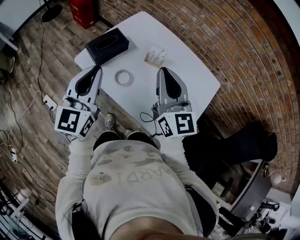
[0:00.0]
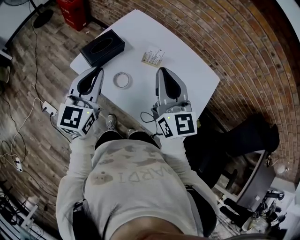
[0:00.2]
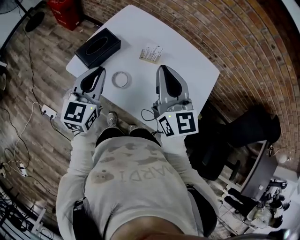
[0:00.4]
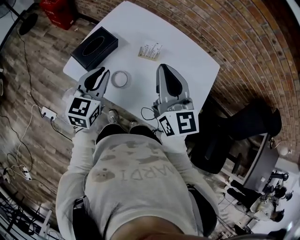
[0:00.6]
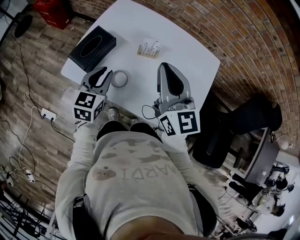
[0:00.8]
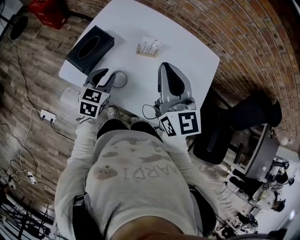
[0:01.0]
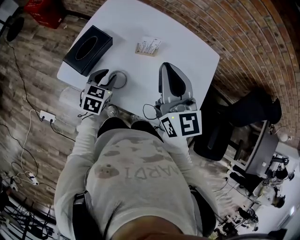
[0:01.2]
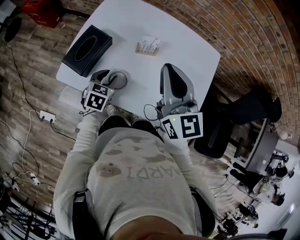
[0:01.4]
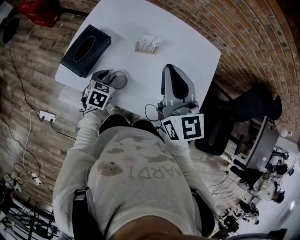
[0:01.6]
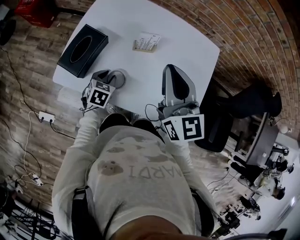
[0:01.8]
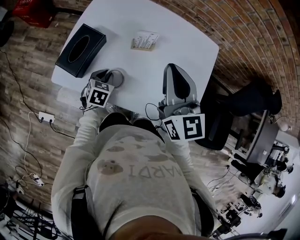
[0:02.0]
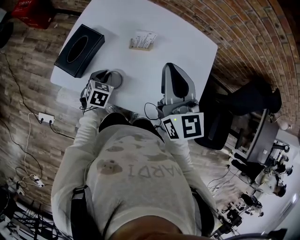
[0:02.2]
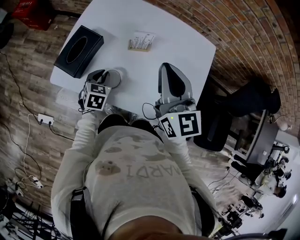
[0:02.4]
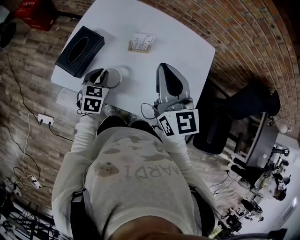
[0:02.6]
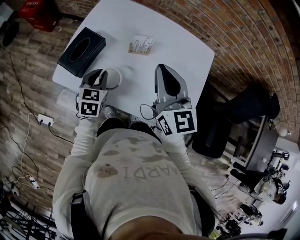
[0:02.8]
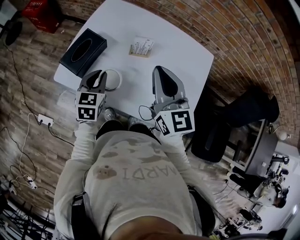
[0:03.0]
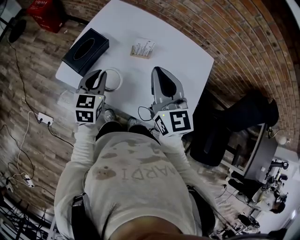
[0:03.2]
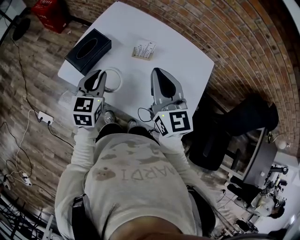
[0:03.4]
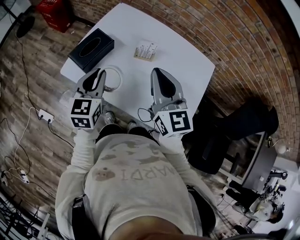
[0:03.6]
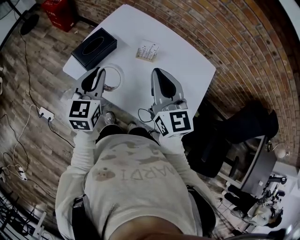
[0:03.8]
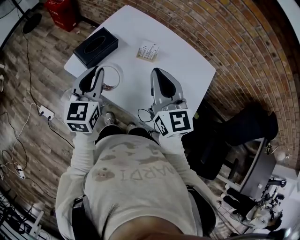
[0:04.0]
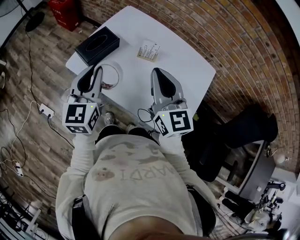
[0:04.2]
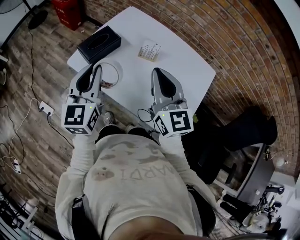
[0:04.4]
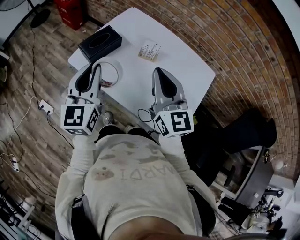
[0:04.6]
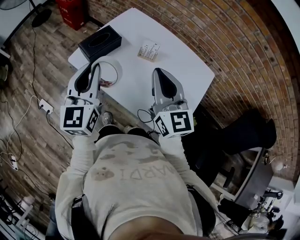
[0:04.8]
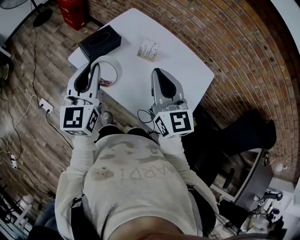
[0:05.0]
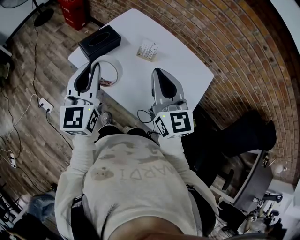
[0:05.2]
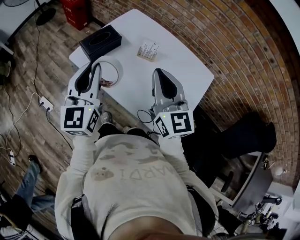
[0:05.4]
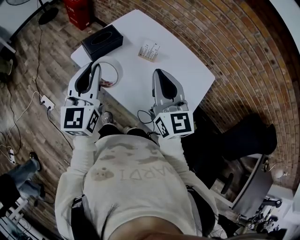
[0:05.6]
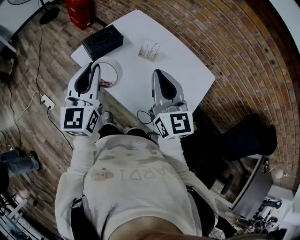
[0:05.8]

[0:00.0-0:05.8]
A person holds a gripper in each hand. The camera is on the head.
0:00.0 to 0:01.4: The left gripper heads downward and forward, covering roughly 35 cm, angles its fingers downward, by some 50 degrees, and opens its fingers, while the right gripper moves forward, some 10 cm.
0:01.4 to 0:02.8: The left gripper travels upward by some 5 cm.
0:02.8 to 0:04.4: The right gripper travels backward by about 10 cm; the left gripper goes about 25 cm upward and backward, and angles its fingers upward, by some 30 degrees.
0:04.4 to 0:05.8: Both grippers travel together backward, approximately 5 cm.

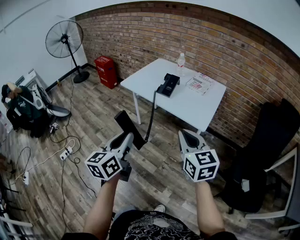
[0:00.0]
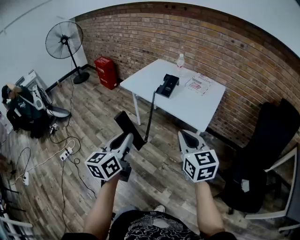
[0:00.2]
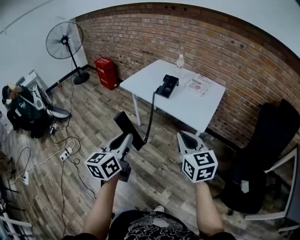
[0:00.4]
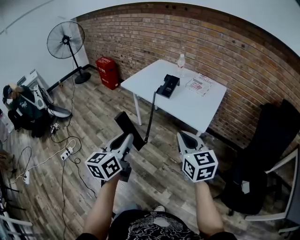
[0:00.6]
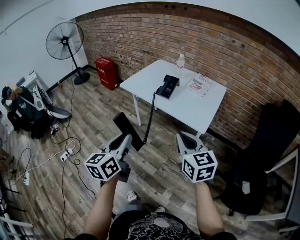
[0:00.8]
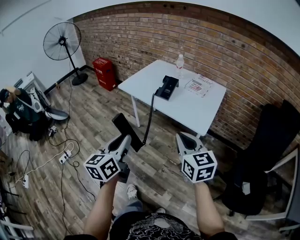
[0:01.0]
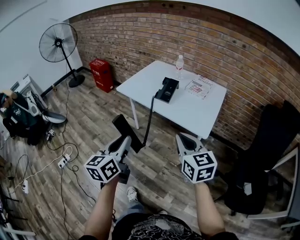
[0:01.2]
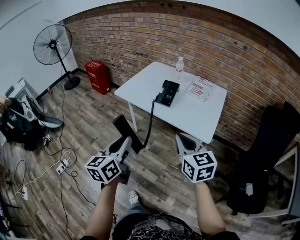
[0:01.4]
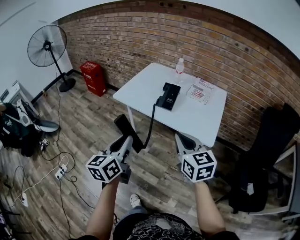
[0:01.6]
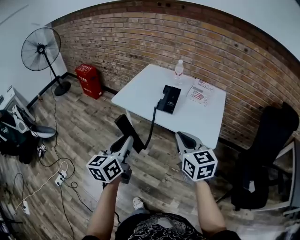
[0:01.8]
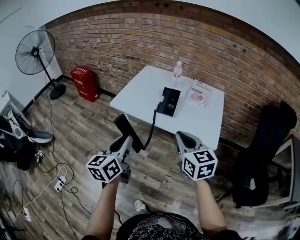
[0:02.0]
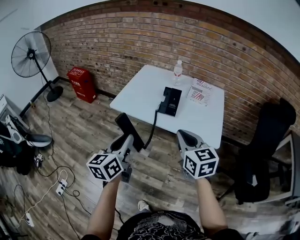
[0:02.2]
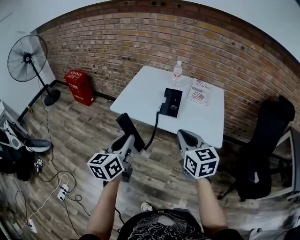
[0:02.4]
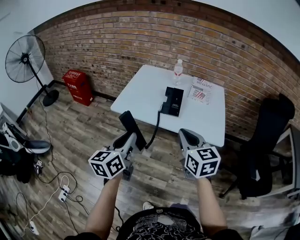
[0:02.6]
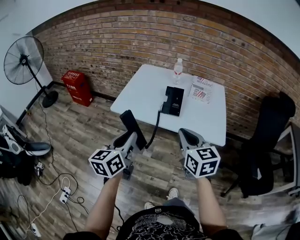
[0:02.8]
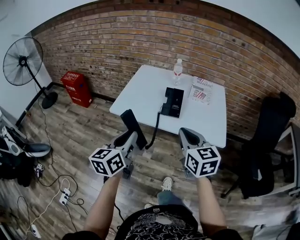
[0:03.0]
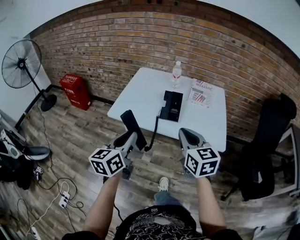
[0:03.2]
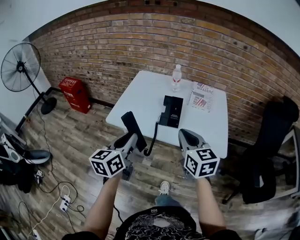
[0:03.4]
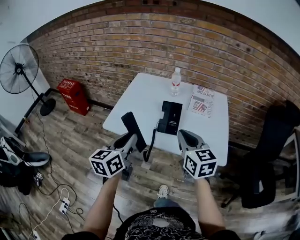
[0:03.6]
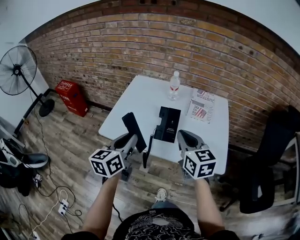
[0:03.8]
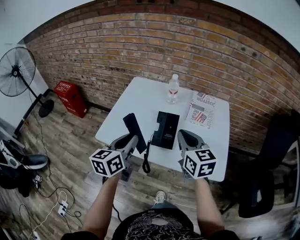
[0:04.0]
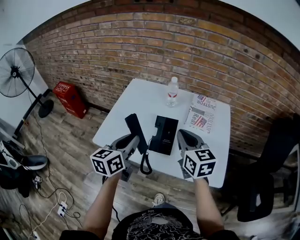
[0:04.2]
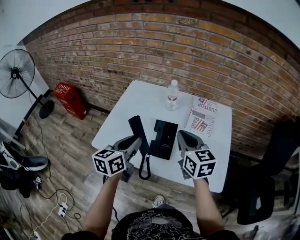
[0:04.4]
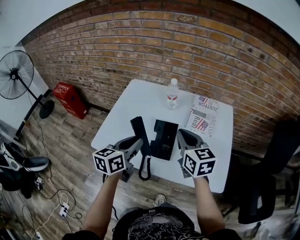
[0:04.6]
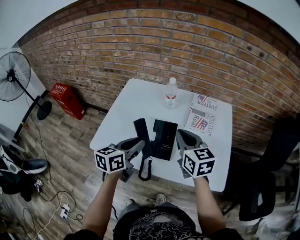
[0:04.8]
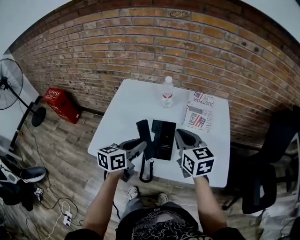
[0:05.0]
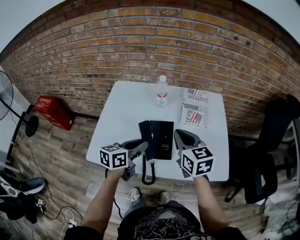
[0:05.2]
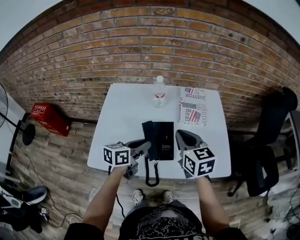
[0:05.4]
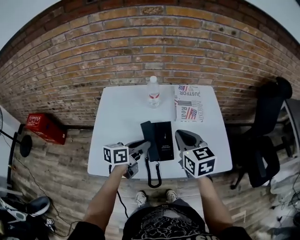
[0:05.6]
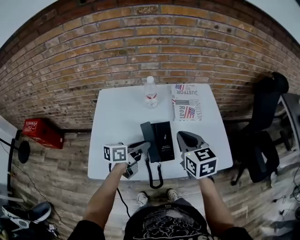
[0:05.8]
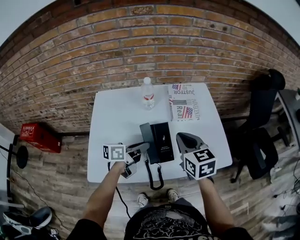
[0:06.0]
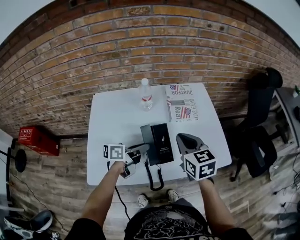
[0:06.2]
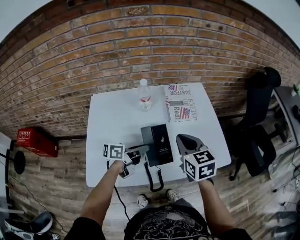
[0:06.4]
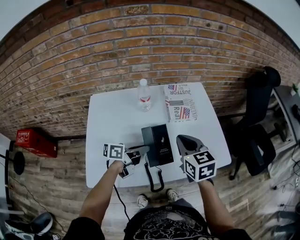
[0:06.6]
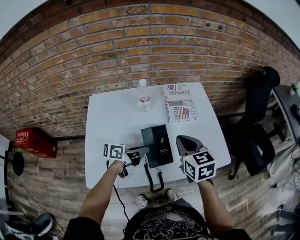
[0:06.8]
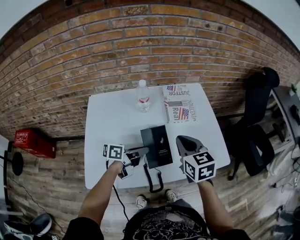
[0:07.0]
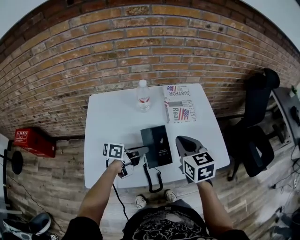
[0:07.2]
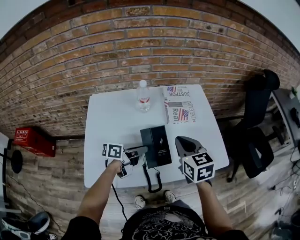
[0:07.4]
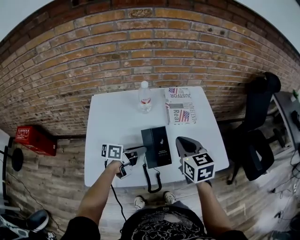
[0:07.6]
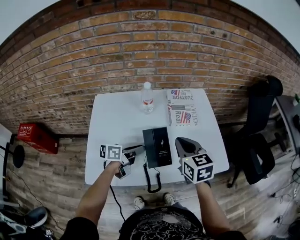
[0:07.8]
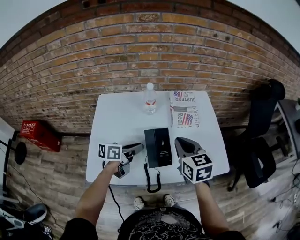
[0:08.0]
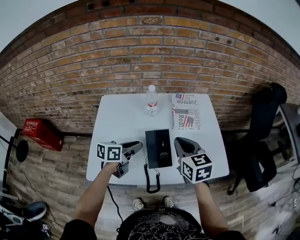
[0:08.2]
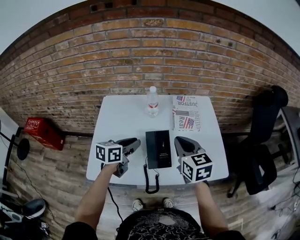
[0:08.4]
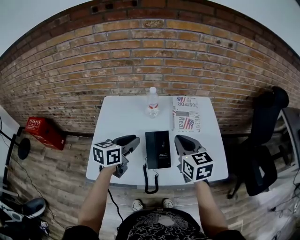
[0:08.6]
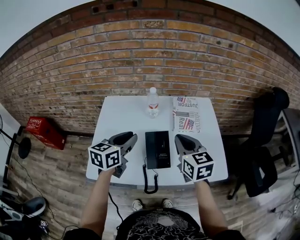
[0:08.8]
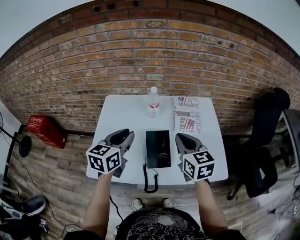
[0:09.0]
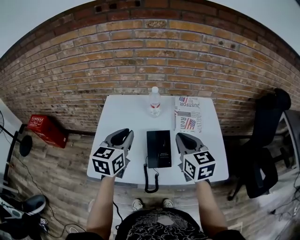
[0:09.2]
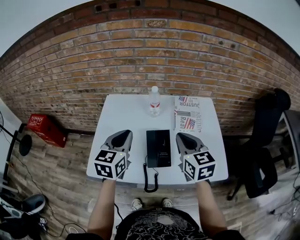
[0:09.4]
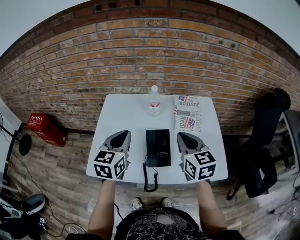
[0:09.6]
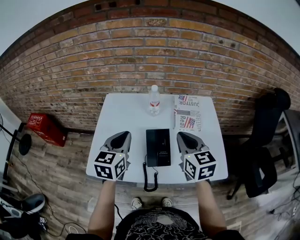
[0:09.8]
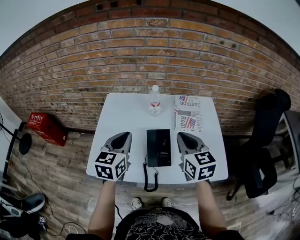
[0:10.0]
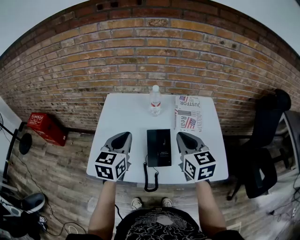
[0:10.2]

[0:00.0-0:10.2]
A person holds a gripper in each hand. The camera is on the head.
0:00.0 to 0:01.4: Both grippers move forward, some 10 cm.
0:01.4 to 0:03.0: The grippers both shift forward and to the left by about 20 cm.
0:03.0 to 0:04.4: Both grippers move forward, approximately 30 cm.
0:04.4 to 0:05.8: The left gripper travels downward by about 10 cm, and rotates some 50 degrees. The right gripper turns by approximately 20 degrees.
0:05.8 to 0:07.2: The grippers make only small movements.
0:07.2 to 0:08.8: The right gripper ends up roughly 5 cm from where it was, while the left gripper shifts about 15 cm upward and to the left, and swivels roughly 50 degrees.
0:08.8 to 0:10.2: The left gripper turns by about 20 degrees.

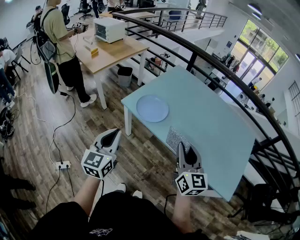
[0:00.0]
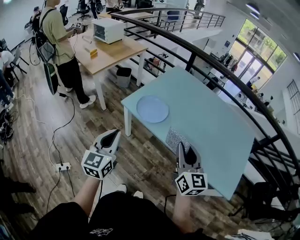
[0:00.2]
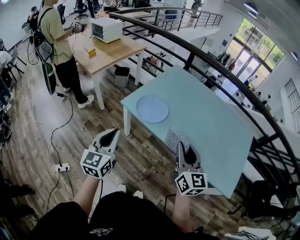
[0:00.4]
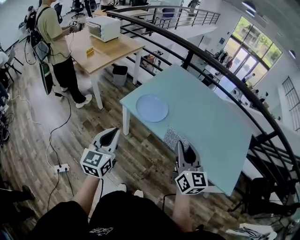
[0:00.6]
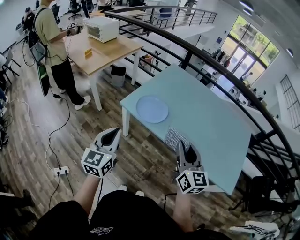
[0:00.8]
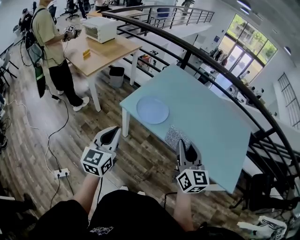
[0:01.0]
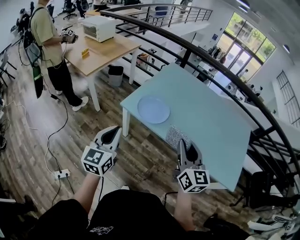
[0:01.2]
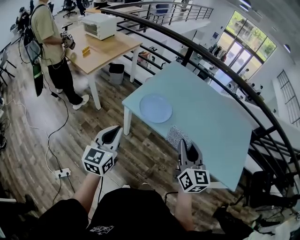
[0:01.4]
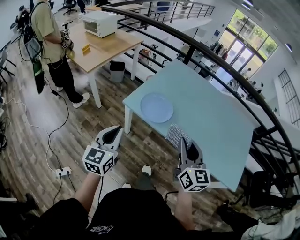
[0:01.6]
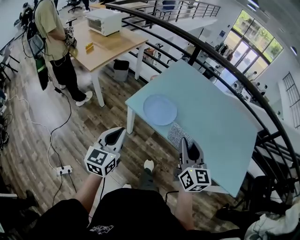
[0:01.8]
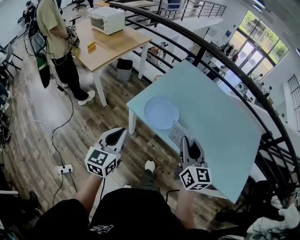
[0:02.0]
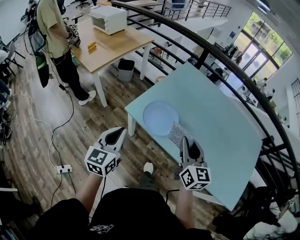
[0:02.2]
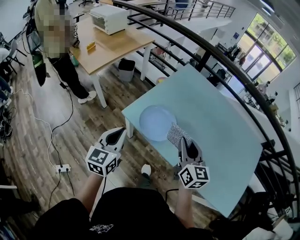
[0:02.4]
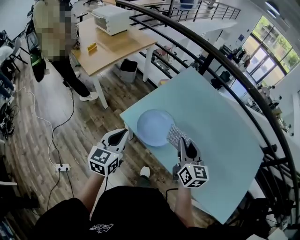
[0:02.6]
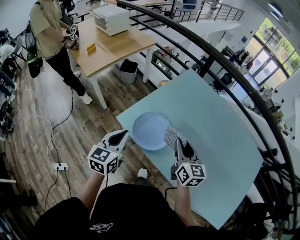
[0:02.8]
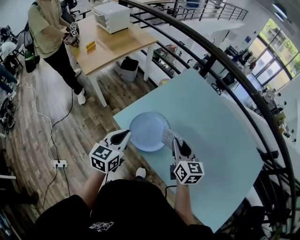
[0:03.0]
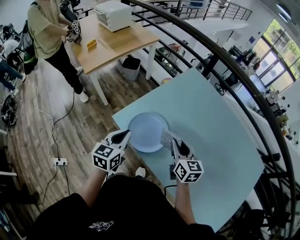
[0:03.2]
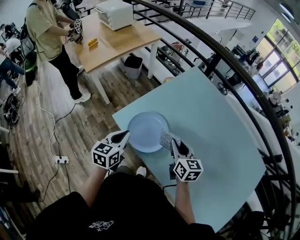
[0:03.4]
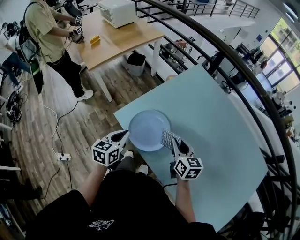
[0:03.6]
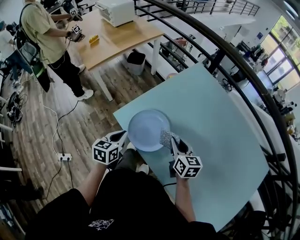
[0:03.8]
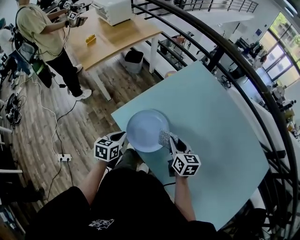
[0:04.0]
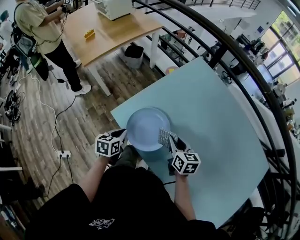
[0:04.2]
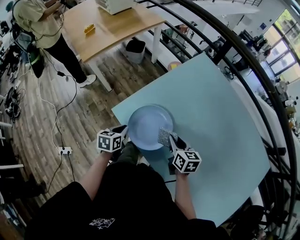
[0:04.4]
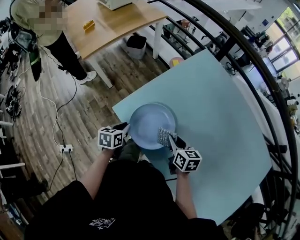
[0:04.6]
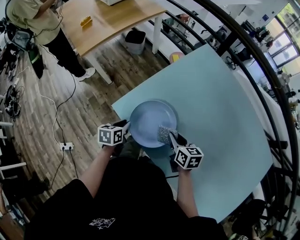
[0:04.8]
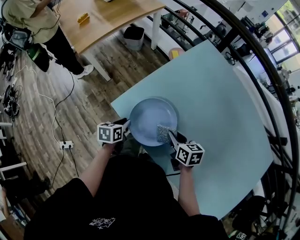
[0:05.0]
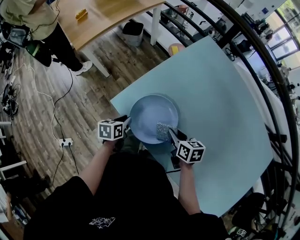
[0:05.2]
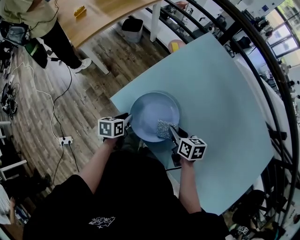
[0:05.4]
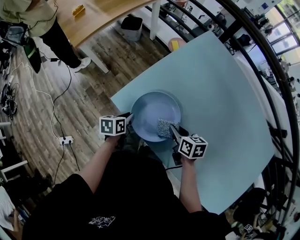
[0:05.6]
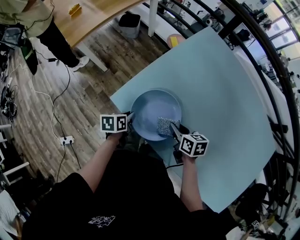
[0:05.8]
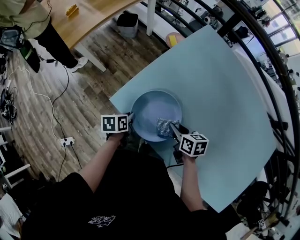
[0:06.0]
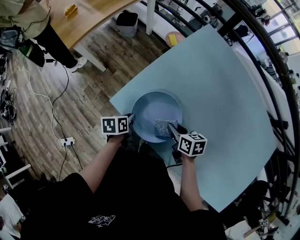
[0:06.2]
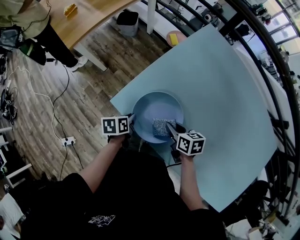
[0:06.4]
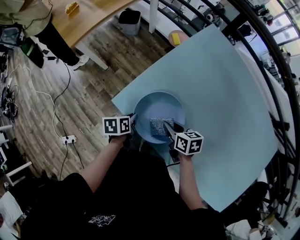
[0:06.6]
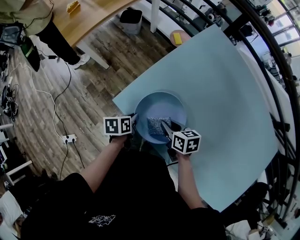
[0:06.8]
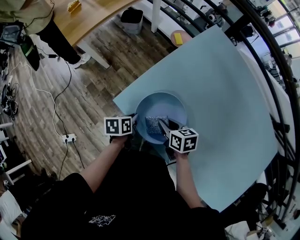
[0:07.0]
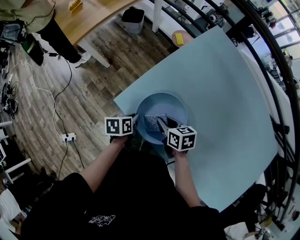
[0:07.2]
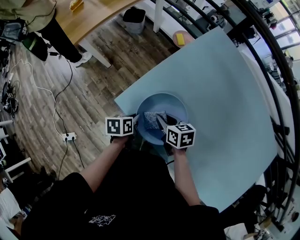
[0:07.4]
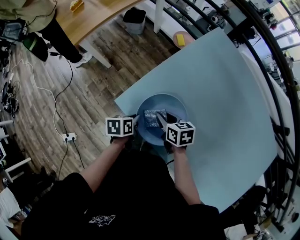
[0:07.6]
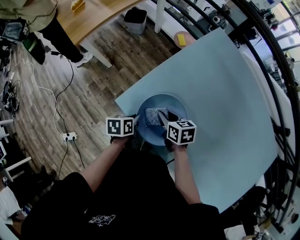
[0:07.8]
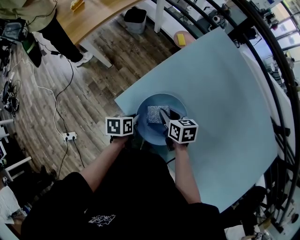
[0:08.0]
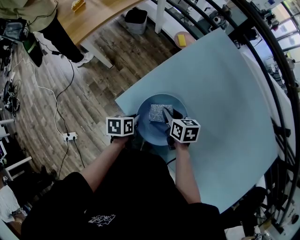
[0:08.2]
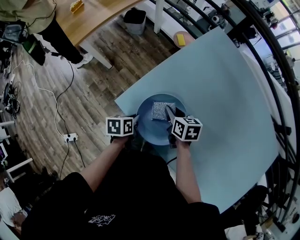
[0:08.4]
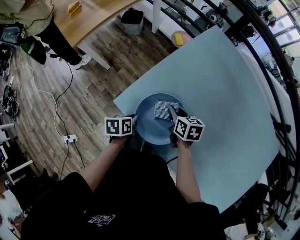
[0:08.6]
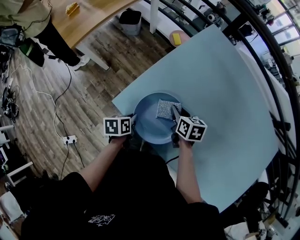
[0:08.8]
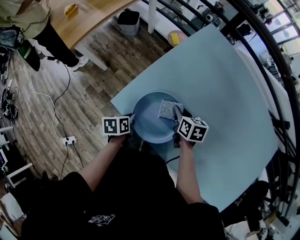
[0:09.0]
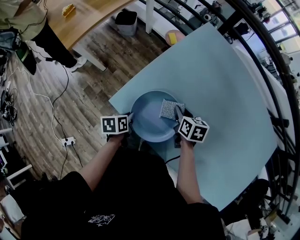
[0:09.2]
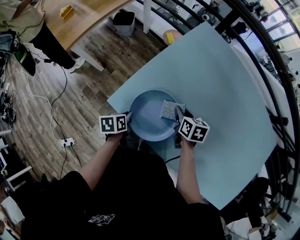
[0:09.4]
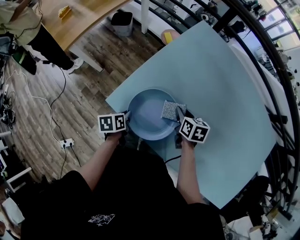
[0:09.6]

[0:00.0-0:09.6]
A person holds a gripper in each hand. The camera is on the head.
0:00.0 to 0:01.6: The right gripper moves to the left, about 10 cm. Meanwhile the left gripper travels to the left and forward by about 10 cm.
0:01.6 to 0:03.2: The right gripper heads forward and downward, covering approximately 35 cm, and swivels some 30 degrees; the left gripper goes some 30 cm forward and to the right.
0:03.2 to 0:04.8: The grippers both shift downward by approximately 15 cm. The left gripper changes its angle by approximately 30 degrees. Meanwhile the right gripper turns by roughly 20 degrees.
0:04.8 to 0:06.4: The right gripper shifts by about 5 cm.
0:06.4 to 0:08.0: The right gripper heads forward and to the left, covering approximately 10 cm.
0:08.0 to 0:09.6: The right gripper moves to the right, approximately 15 cm, and rotates some 20 degrees.
